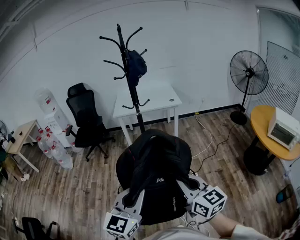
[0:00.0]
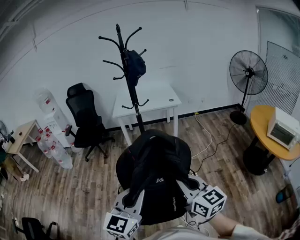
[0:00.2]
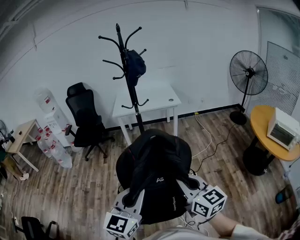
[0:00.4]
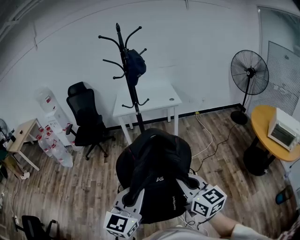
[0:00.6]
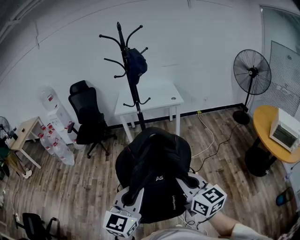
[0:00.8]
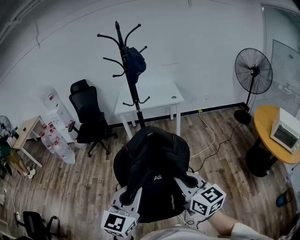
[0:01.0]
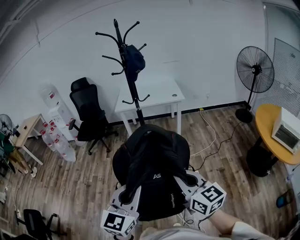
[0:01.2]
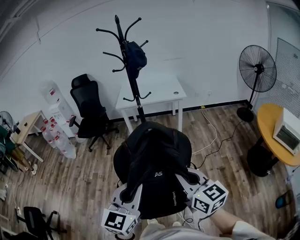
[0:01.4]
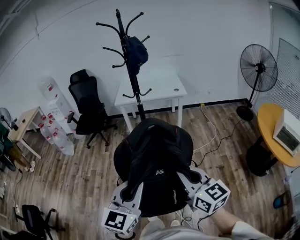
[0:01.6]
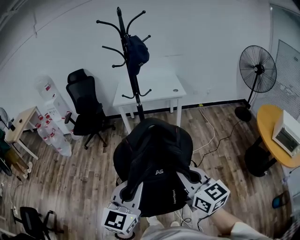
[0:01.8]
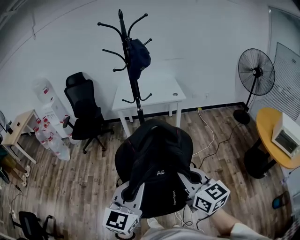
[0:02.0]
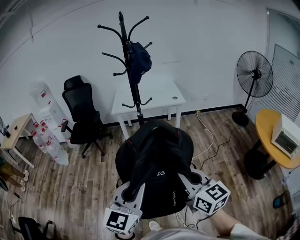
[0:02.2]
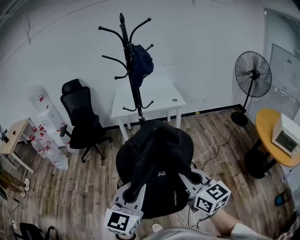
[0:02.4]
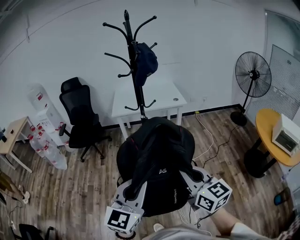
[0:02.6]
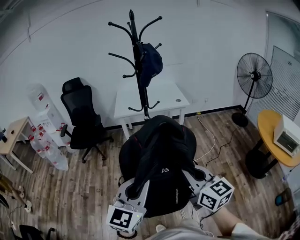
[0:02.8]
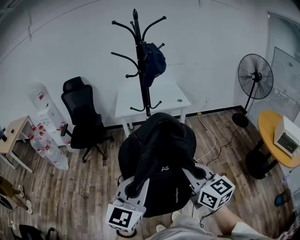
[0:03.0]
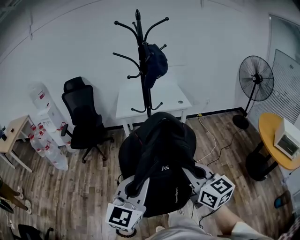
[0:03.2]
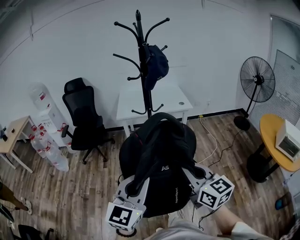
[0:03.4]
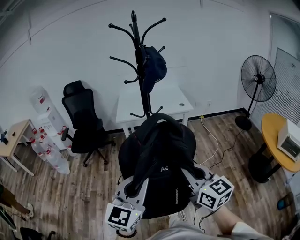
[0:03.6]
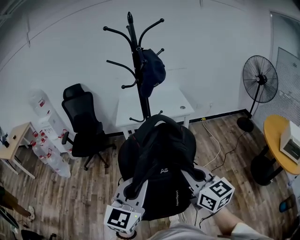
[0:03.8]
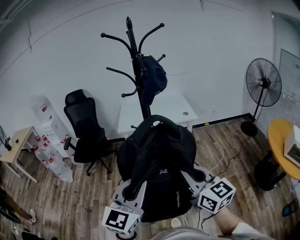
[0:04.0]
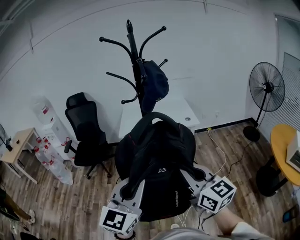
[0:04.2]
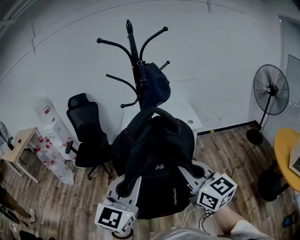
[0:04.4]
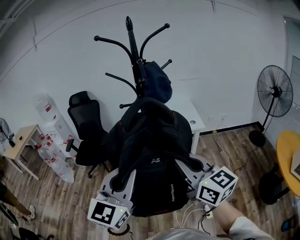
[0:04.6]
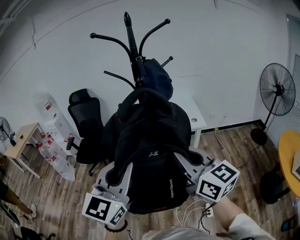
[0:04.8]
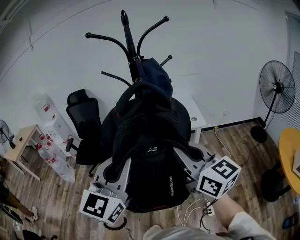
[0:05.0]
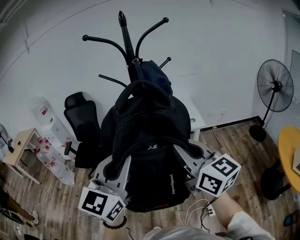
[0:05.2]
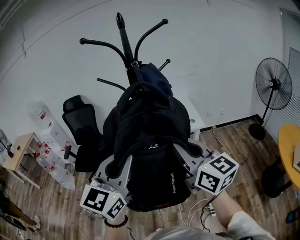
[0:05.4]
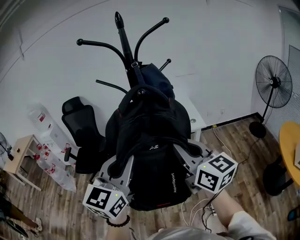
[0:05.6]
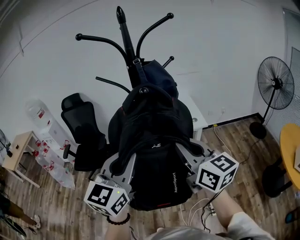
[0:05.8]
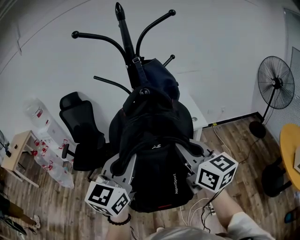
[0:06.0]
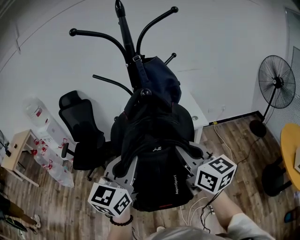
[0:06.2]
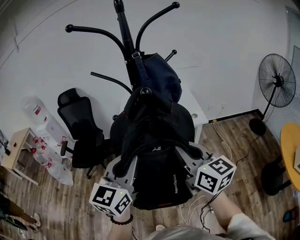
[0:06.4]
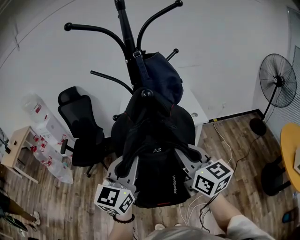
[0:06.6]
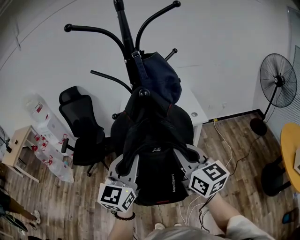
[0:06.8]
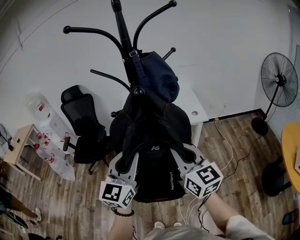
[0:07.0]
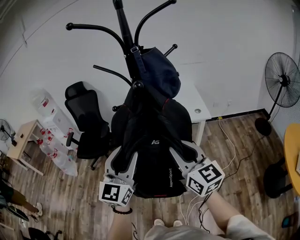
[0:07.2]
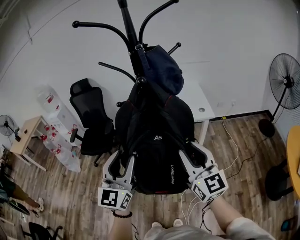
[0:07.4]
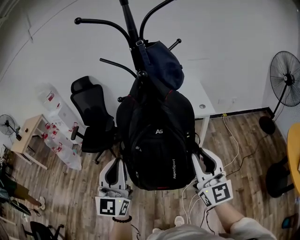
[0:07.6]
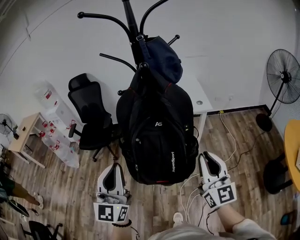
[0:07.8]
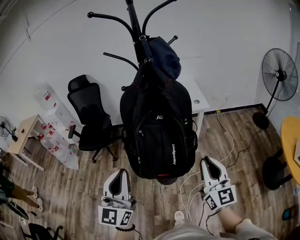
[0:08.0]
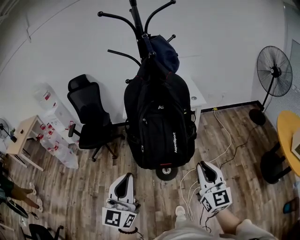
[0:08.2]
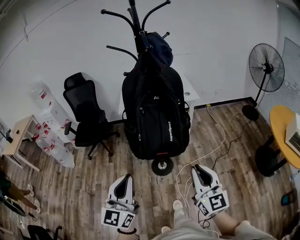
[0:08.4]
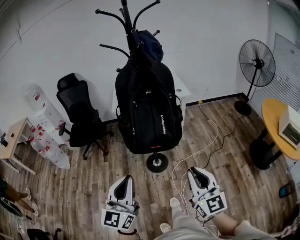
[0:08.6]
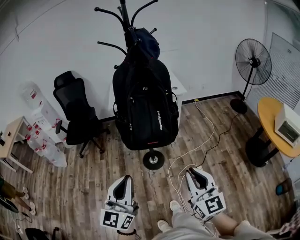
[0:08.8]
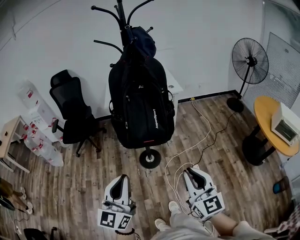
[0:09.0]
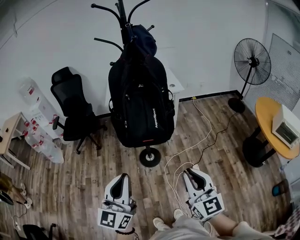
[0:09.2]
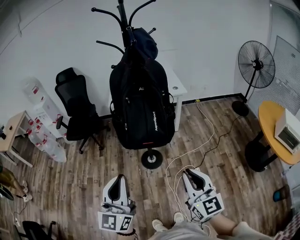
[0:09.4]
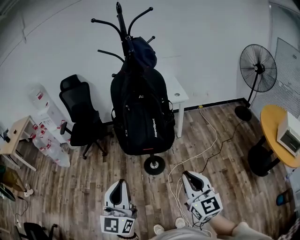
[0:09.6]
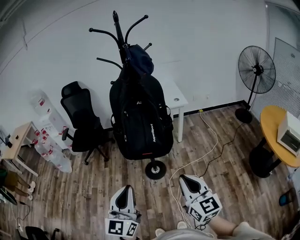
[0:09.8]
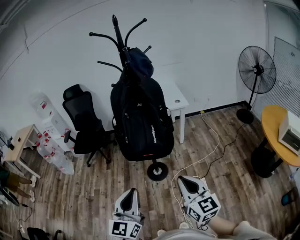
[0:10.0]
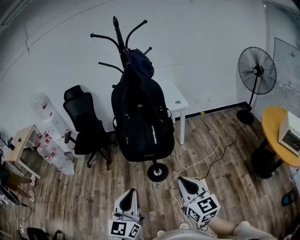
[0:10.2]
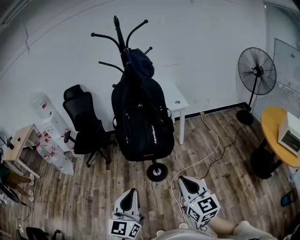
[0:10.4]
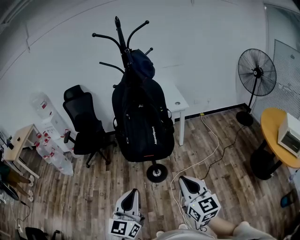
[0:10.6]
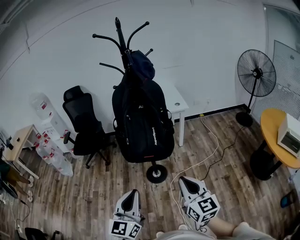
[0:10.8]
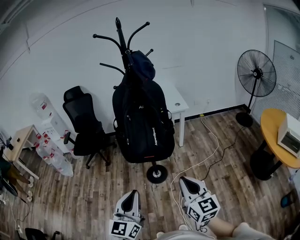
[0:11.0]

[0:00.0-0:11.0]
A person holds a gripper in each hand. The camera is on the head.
0:00.0 to 0:01.6: The left gripper changes place by about 5 cm. The right gripper changes place by roughly 5 cm.
0:01.6 to 0:03.2: The two grippers go about 20 cm forward and to the left.
0:03.2 to 0:04.8: Both grippers move forward and upward, about 25 cm.
0:04.8 to 0:06.2: Both grippers move forward, roughly 15 cm.
0:06.2 to 0:07.8: The left gripper shifts some 15 cm backward and to the left, rotates approximately 30 degrees, and opens and closes again. The right gripper shifts some 15 cm backward, downward and to the right, and rotates some 20 degrees.
0:07.8 to 0:09.4: Both grippers travel together backward, roughly 25 cm.
0:09.4 to 0:11.0: The left gripper moves about 5 cm.

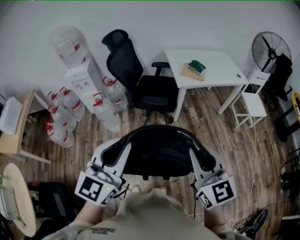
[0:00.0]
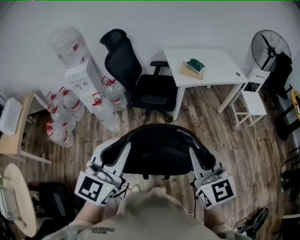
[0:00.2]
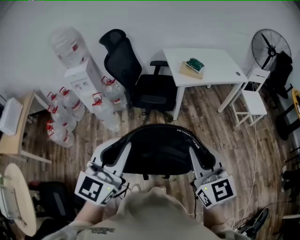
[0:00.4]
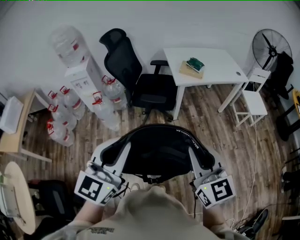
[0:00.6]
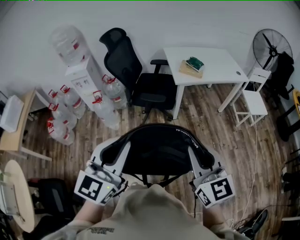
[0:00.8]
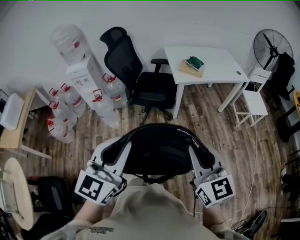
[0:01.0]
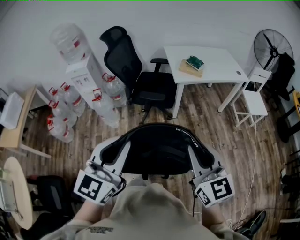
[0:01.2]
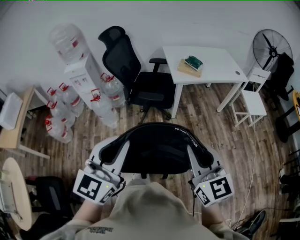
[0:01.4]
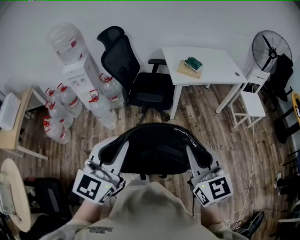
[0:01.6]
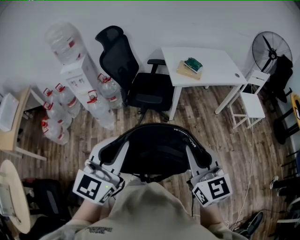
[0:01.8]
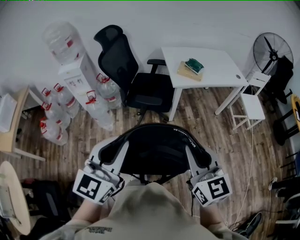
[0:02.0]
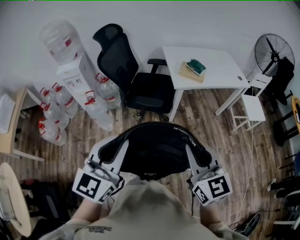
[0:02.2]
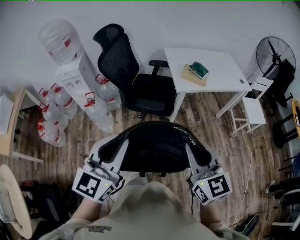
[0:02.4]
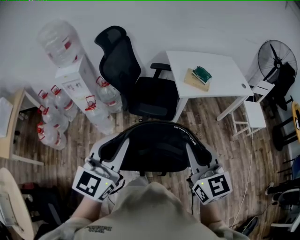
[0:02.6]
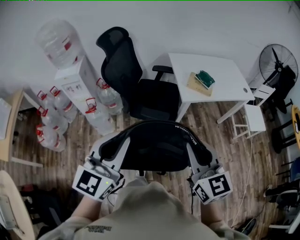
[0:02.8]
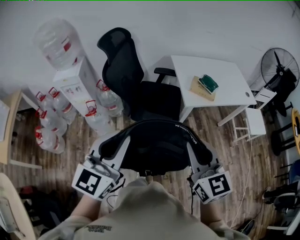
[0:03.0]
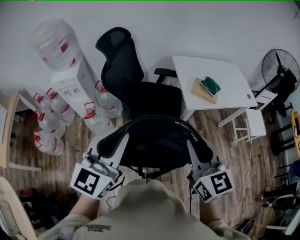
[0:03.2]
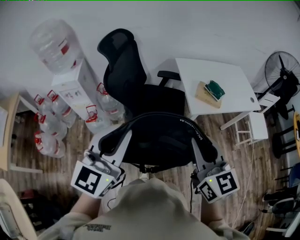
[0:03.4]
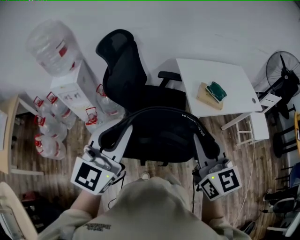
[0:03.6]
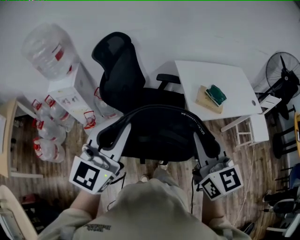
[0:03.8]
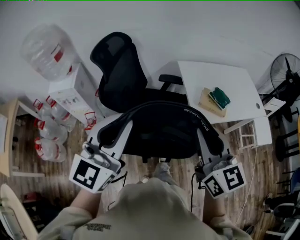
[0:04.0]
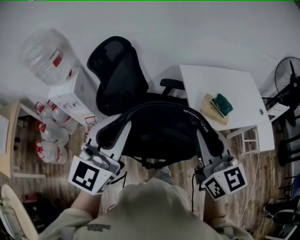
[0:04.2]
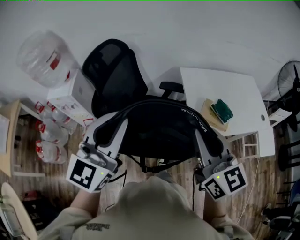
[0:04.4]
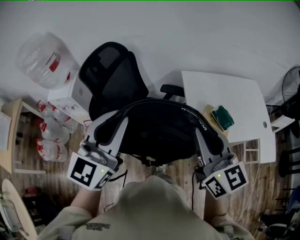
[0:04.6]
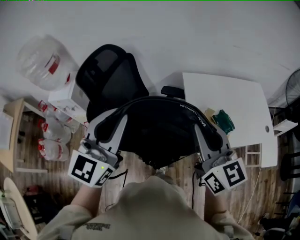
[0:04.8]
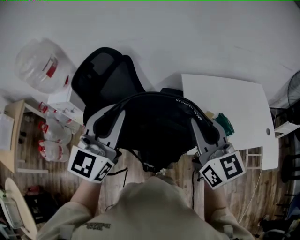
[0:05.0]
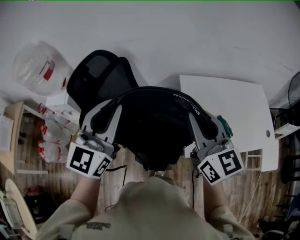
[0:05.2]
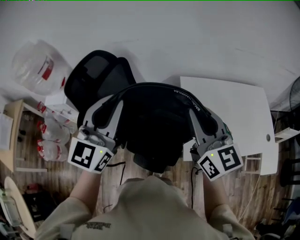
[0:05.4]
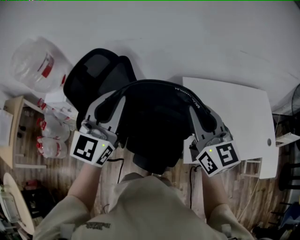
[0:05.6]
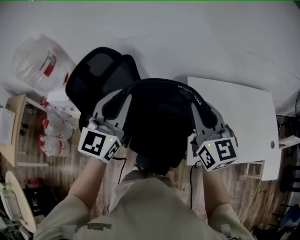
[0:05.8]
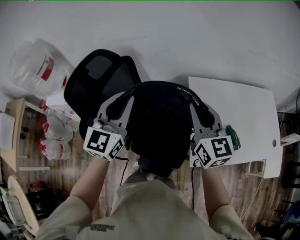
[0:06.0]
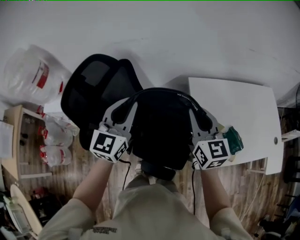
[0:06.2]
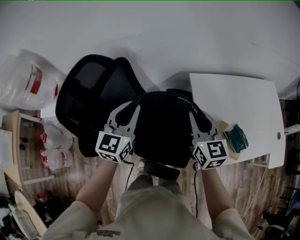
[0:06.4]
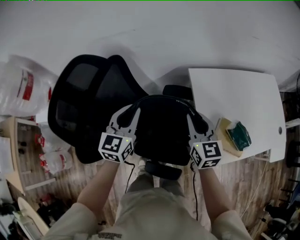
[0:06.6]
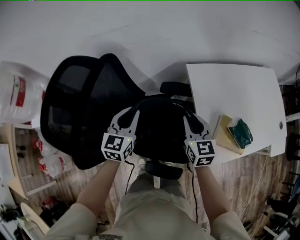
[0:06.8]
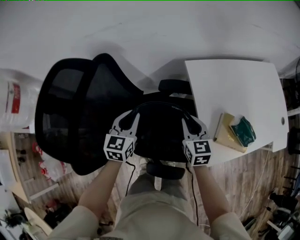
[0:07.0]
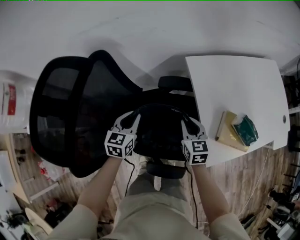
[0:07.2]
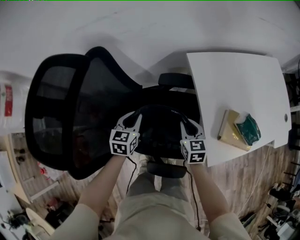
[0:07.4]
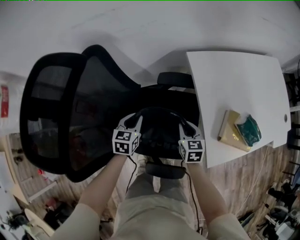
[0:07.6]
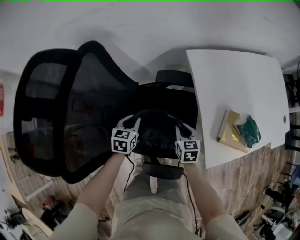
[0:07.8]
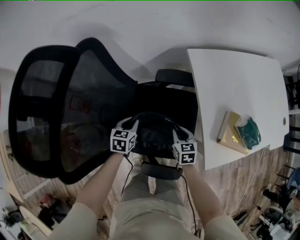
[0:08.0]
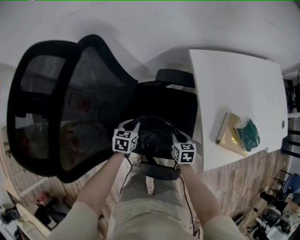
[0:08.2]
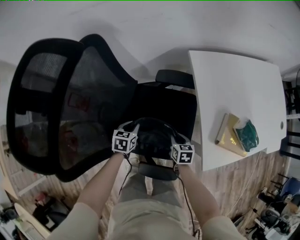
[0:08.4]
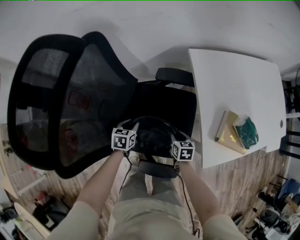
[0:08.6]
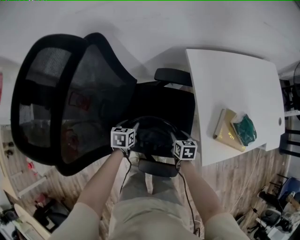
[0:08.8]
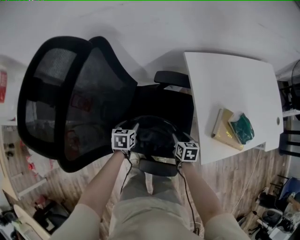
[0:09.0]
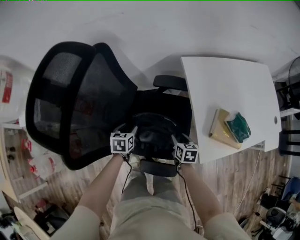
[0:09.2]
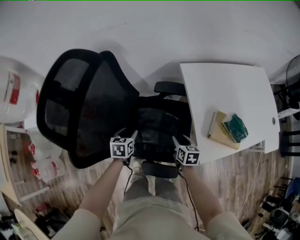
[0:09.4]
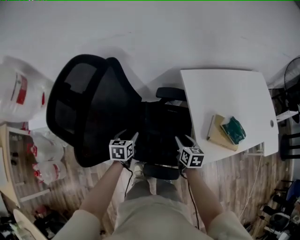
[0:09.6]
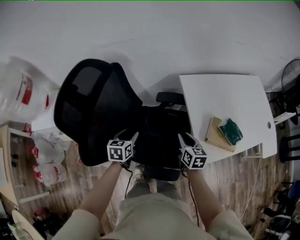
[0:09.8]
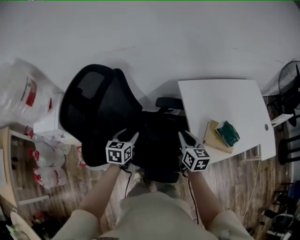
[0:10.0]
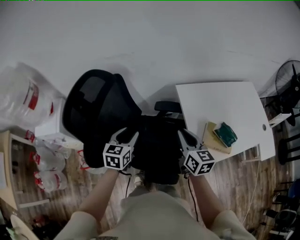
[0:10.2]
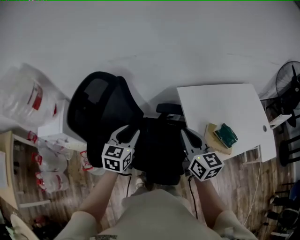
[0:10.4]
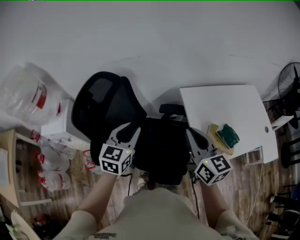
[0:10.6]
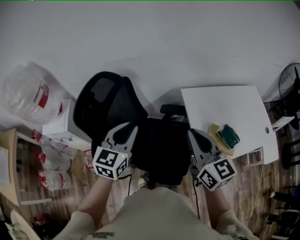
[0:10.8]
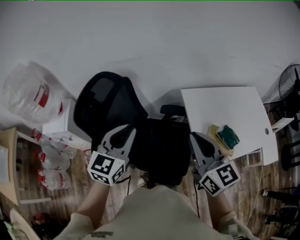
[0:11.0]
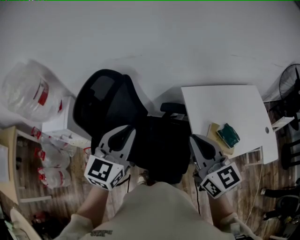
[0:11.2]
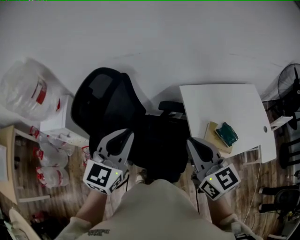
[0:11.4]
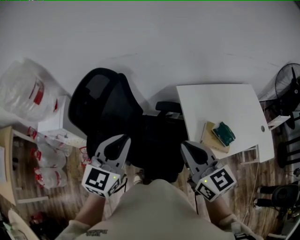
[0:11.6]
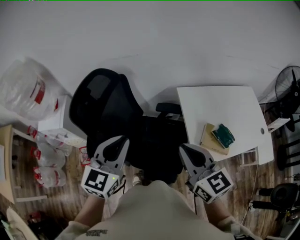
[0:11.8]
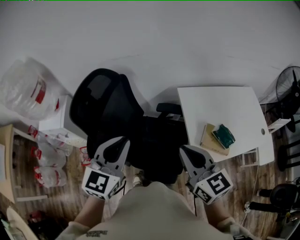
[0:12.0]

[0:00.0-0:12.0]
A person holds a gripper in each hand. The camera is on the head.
0:00.0 to 0:01.6: The left gripper moves roughly 5 cm, while the right gripper moves some 5 cm.
0:01.6 to 0:03.0: Both grippers move forward and to the left, roughly 30 cm.
0:03.0 to 0:04.4: The grippers both shift forward by approximately 30 cm.
0:04.4 to 0:06.0: Both grippers travel together forward, approximately 30 cm.
0:06.0 to 0:07.6: The two grippers go some 40 cm downward. The right gripper tips its fingers downward by roughly 40 degrees. The left gripper tips its fingers downward by about 40 degrees.
0:07.6 to 0:09.0: Both grippers move downward and backward, some 10 cm. The left gripper opens its fingers. The right gripper opens up.
0:09.0 to 0:10.4: The grippers both shift upward by some 40 cm. The right gripper angles its fingers upward, by some 40 degrees, and closes its fingers; the left gripper angles its fingers upward, by some 30 degrees.
0:10.4 to 0:12.0: The left gripper moves upward and backward, about 15 cm, and closes up; the right gripper travels backward and upward by approximately 10 cm.

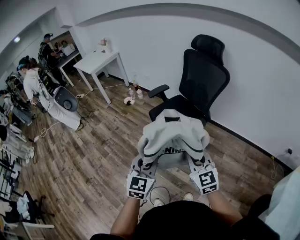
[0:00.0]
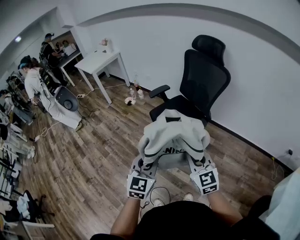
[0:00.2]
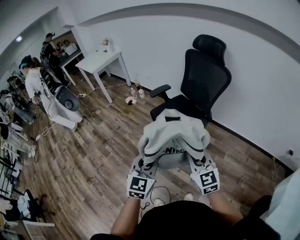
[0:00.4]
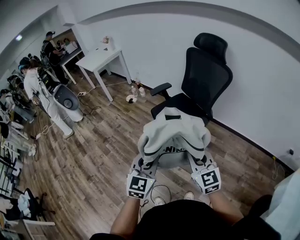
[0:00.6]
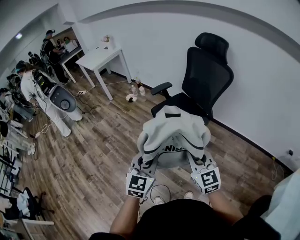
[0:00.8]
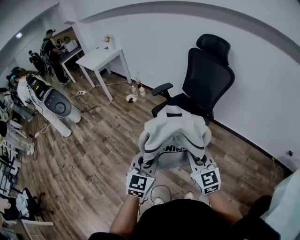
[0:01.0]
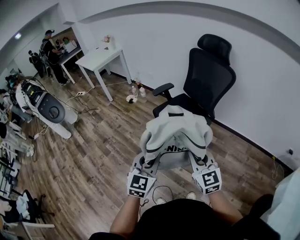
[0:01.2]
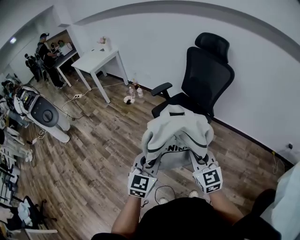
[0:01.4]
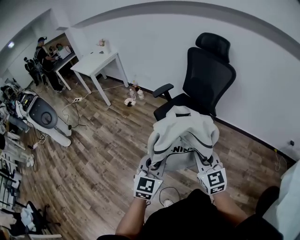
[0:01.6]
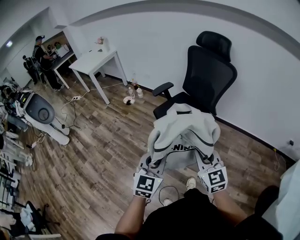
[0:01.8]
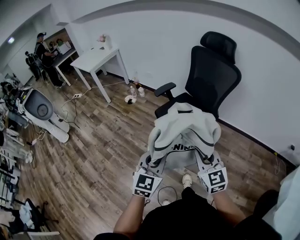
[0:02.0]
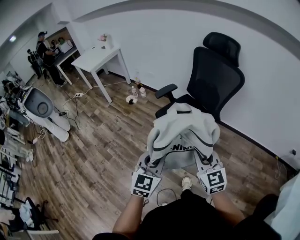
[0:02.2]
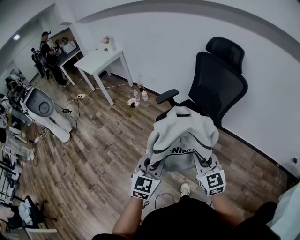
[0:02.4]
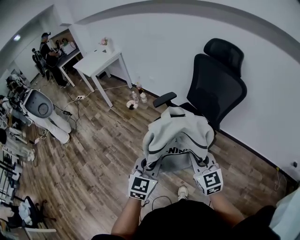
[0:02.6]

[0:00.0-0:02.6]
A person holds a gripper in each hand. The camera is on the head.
0:00.0 to 0:01.2: The grippers stay close to where they were, moving slightly.
0:01.2 to 0:02.6: Both grippers move forward, about 15 cm.
